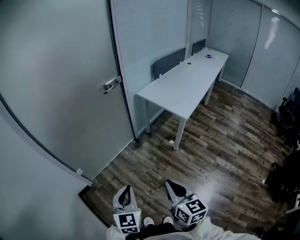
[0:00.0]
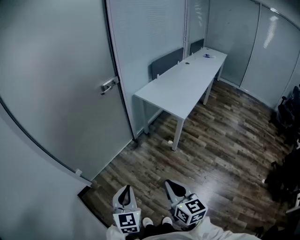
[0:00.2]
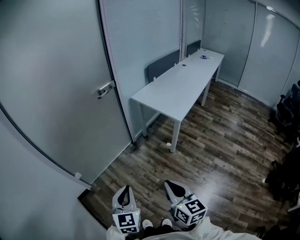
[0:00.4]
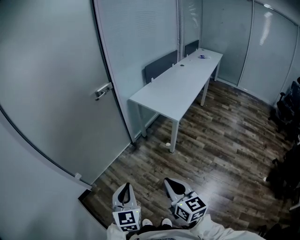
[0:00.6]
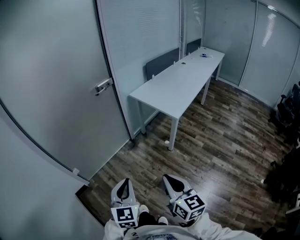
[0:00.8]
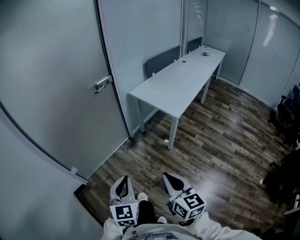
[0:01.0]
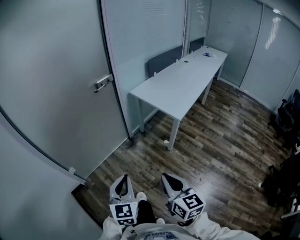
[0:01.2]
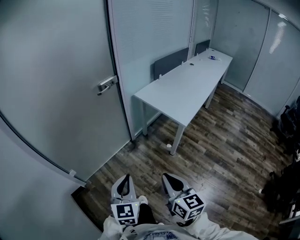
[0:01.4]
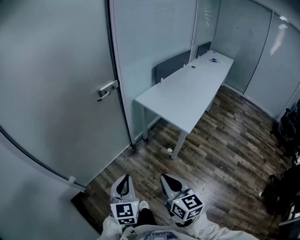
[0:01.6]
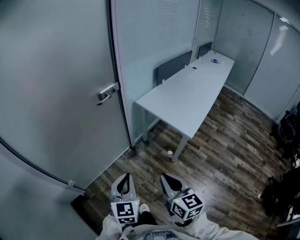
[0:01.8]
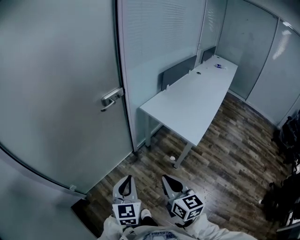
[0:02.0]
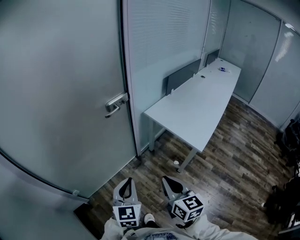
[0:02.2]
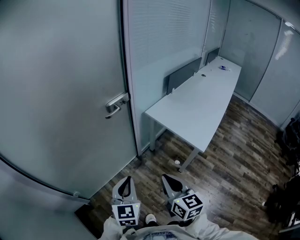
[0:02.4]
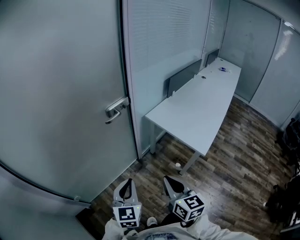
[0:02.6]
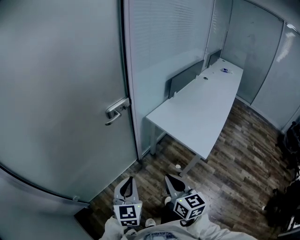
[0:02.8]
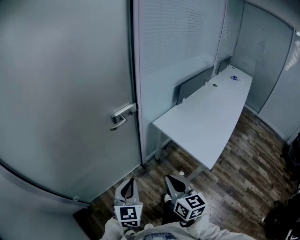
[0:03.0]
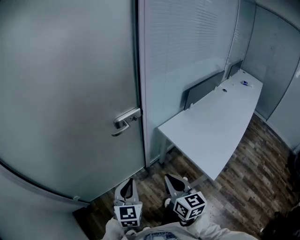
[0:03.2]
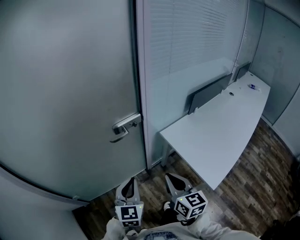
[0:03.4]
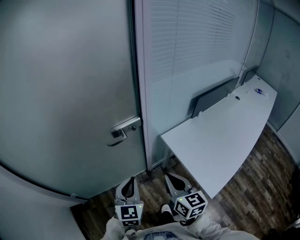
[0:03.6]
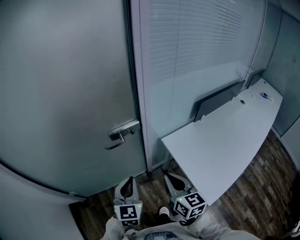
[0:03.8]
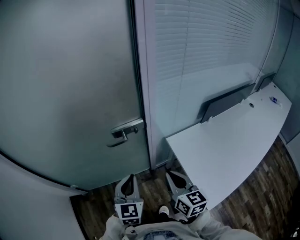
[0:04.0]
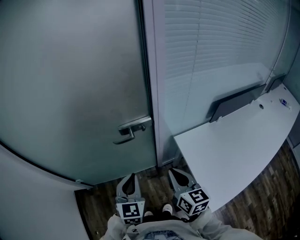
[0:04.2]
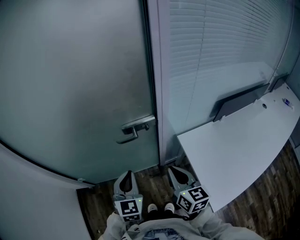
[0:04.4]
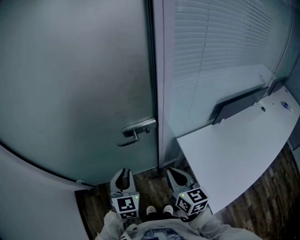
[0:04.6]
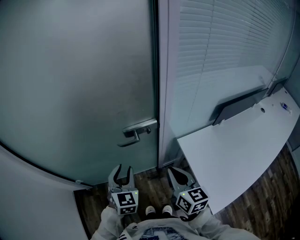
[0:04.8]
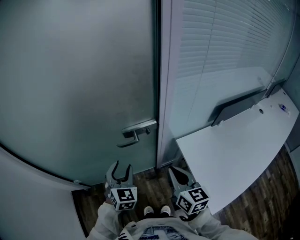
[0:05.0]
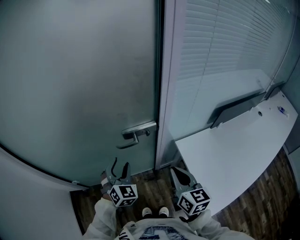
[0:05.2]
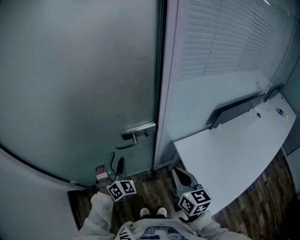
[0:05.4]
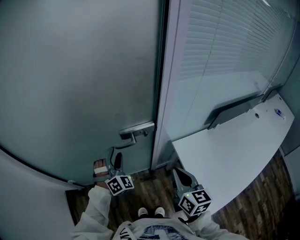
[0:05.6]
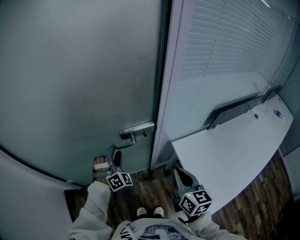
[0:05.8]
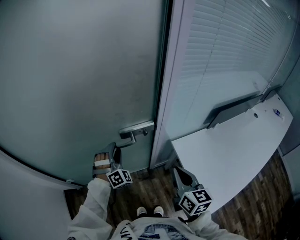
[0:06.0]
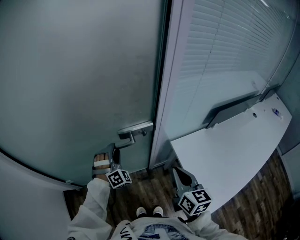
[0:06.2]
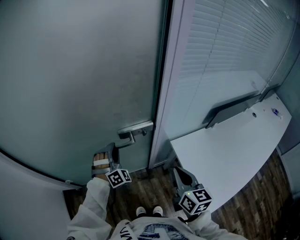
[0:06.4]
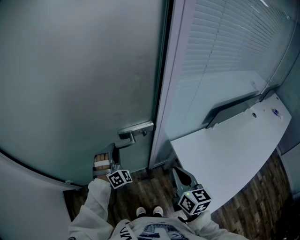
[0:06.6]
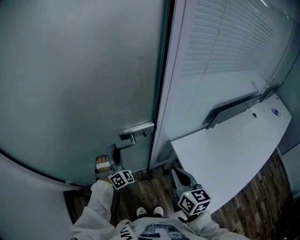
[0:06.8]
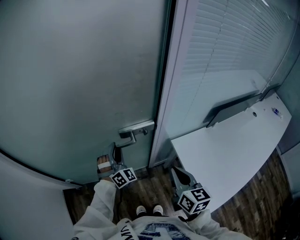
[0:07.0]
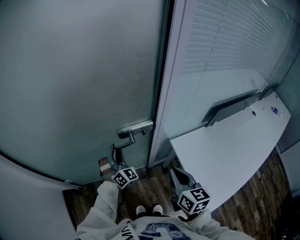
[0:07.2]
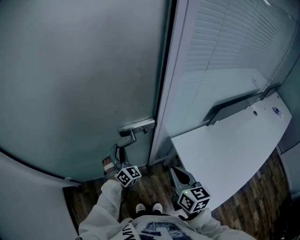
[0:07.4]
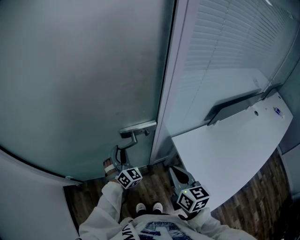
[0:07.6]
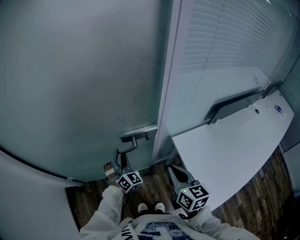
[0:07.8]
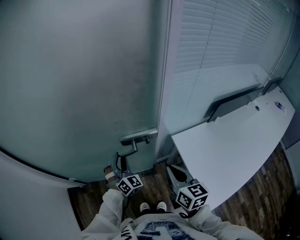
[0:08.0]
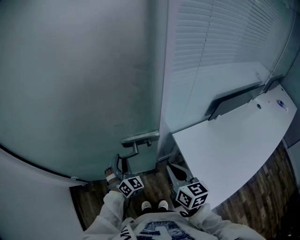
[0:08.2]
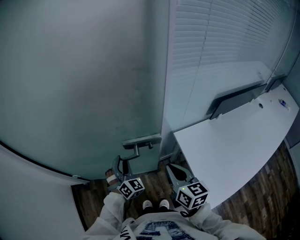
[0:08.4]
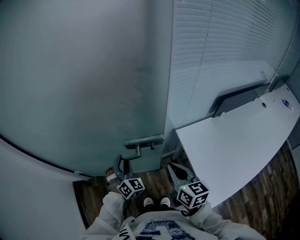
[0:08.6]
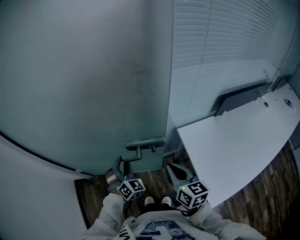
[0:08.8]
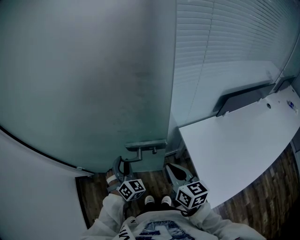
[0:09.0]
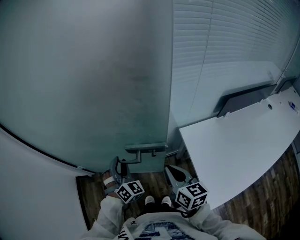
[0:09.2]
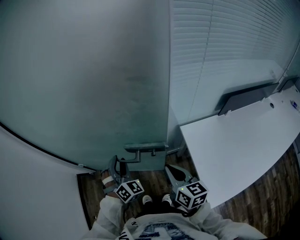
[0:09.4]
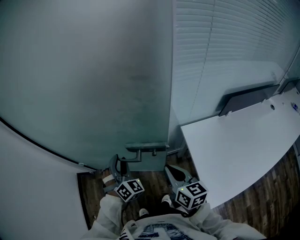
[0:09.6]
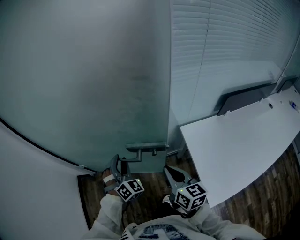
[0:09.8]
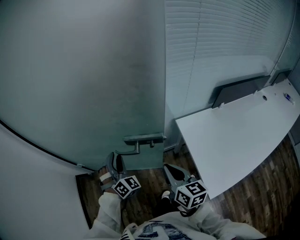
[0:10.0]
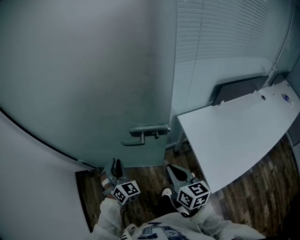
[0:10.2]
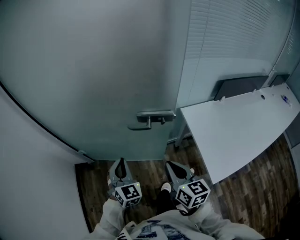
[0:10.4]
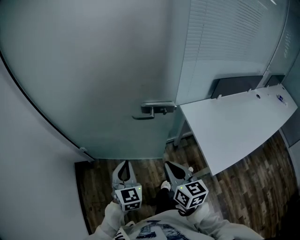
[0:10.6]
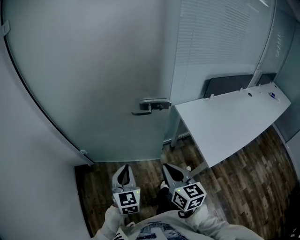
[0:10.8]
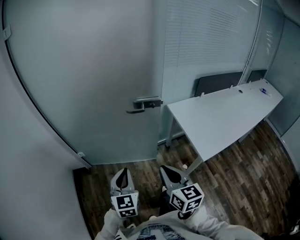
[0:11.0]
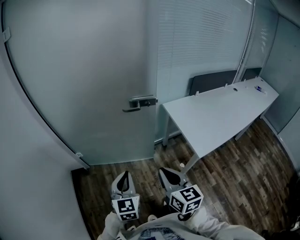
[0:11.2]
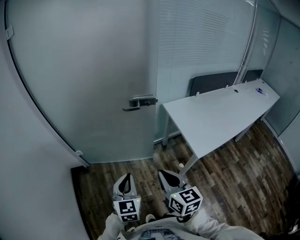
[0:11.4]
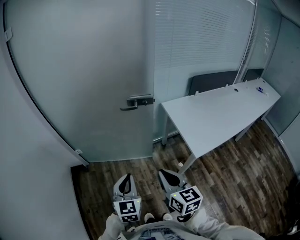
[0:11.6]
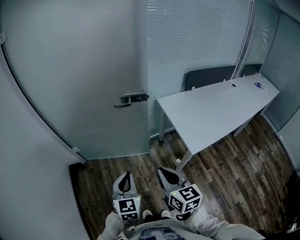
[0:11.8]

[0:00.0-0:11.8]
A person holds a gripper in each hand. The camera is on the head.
0:00.0 to 0:01.4: Both grippers move forward and to the right, approximately 10 cm.
0:01.4 to 0:03.0: Both grippers travel together forward, some 30 cm.
0:03.0 to 0:04.4: The right gripper ends up roughly 25 cm from where it was, and changes its angle by some 30 degrees, while the left gripper changes place by some 15 cm, and rotates some 30 degrees.
0:04.4 to 0:06.0: The left gripper heads forward, covering approximately 15 cm, rolls clockwise, seen from behind, by about 60 degrees, and opens.
0:06.0 to 0:07.4: The left gripper turns by roughly 30 degrees.
0:07.4 to 0:08.8: The left gripper goes approximately 15 cm backward.
0:08.8 to 0:10.4: Both grippers travel together backward and to the left, about 20 cm. The left gripper swivels some 20 degrees, and closes its fingers.
0:10.4 to 0:11.8: The two grippers go approximately 25 cm backward. The left gripper rotates approximately 20 degrees.

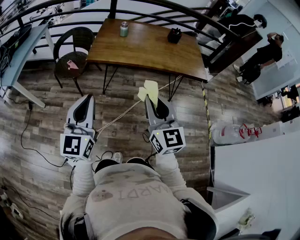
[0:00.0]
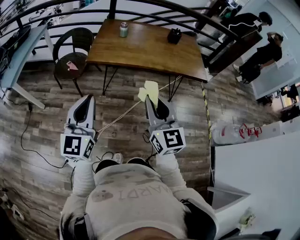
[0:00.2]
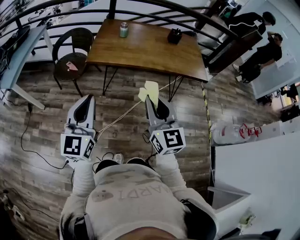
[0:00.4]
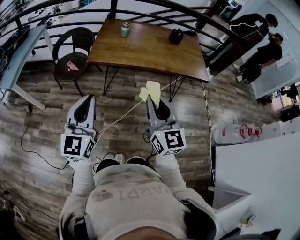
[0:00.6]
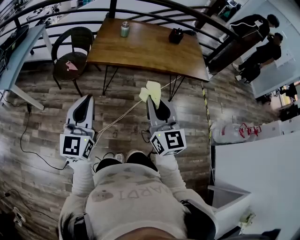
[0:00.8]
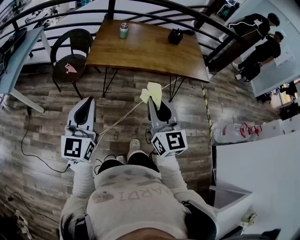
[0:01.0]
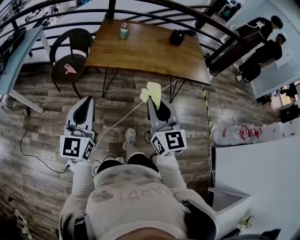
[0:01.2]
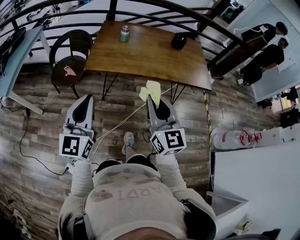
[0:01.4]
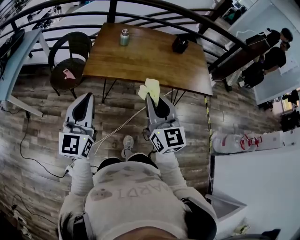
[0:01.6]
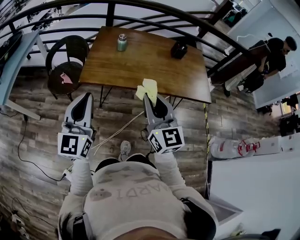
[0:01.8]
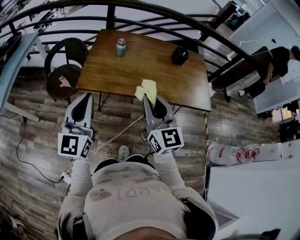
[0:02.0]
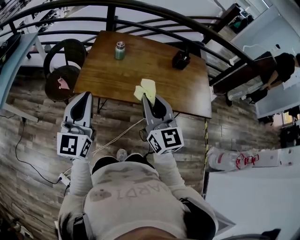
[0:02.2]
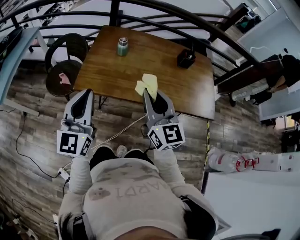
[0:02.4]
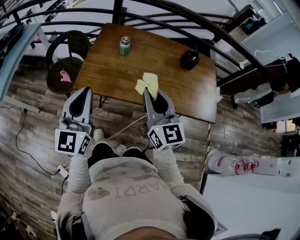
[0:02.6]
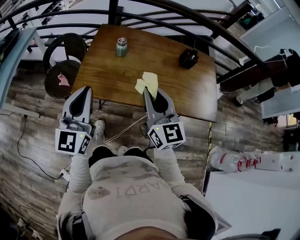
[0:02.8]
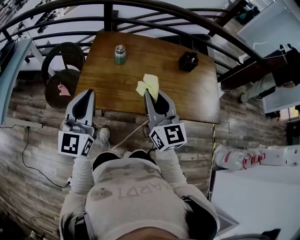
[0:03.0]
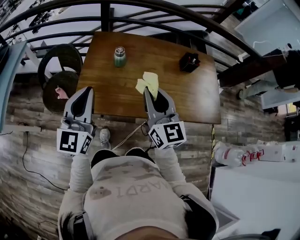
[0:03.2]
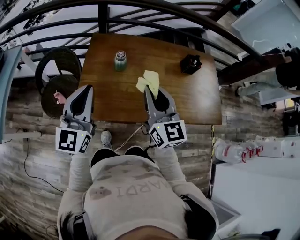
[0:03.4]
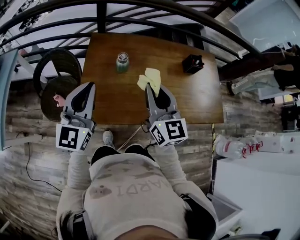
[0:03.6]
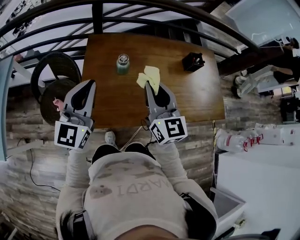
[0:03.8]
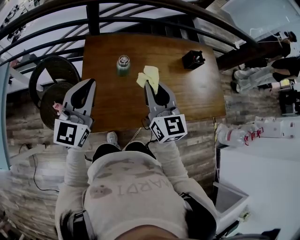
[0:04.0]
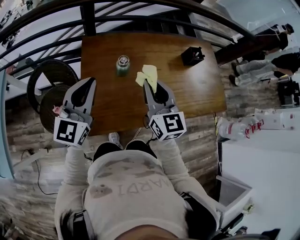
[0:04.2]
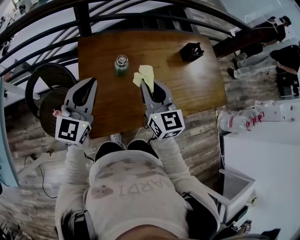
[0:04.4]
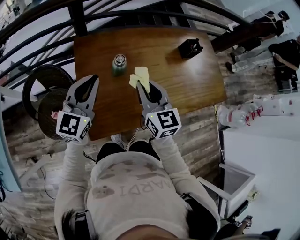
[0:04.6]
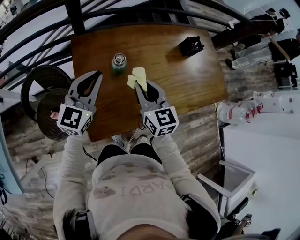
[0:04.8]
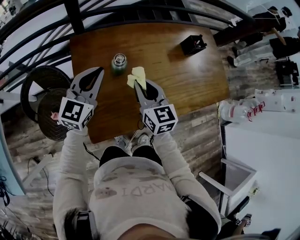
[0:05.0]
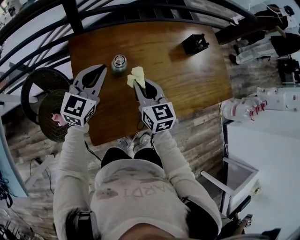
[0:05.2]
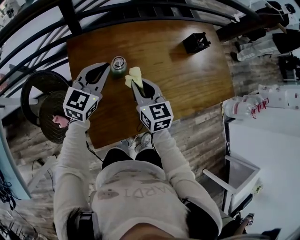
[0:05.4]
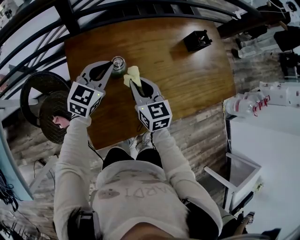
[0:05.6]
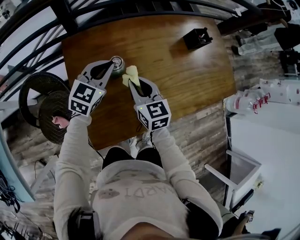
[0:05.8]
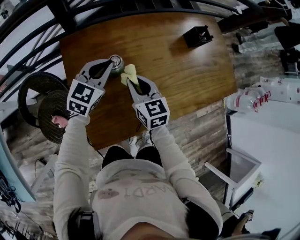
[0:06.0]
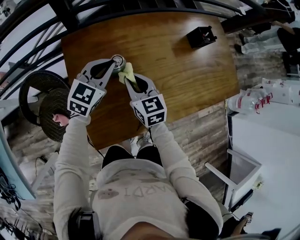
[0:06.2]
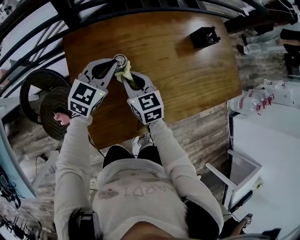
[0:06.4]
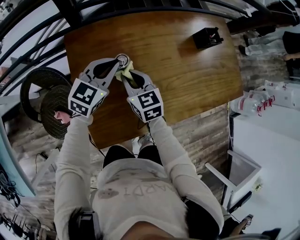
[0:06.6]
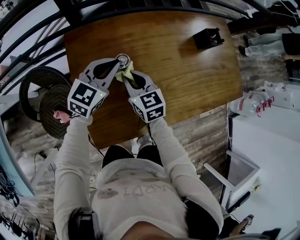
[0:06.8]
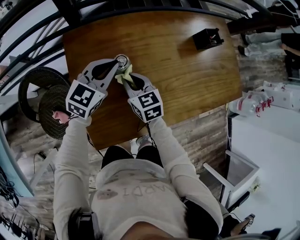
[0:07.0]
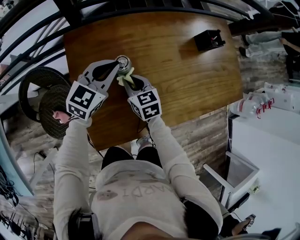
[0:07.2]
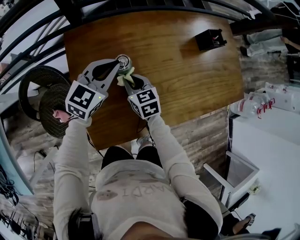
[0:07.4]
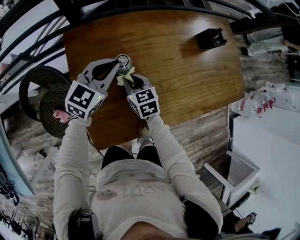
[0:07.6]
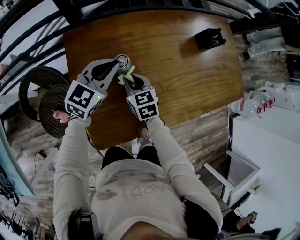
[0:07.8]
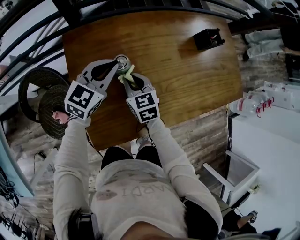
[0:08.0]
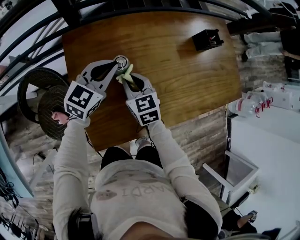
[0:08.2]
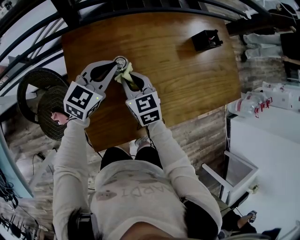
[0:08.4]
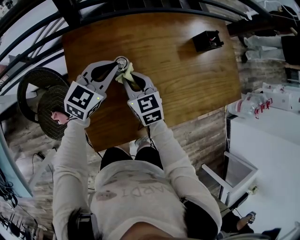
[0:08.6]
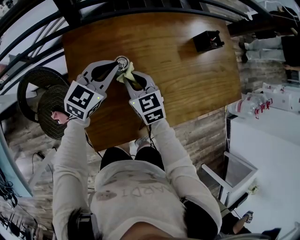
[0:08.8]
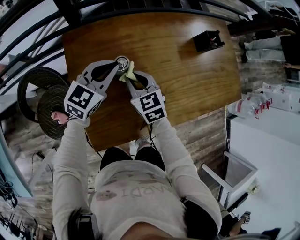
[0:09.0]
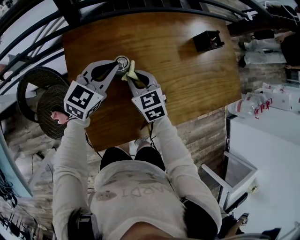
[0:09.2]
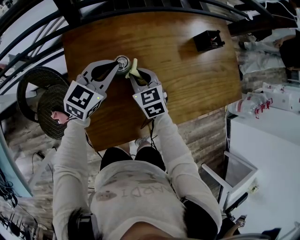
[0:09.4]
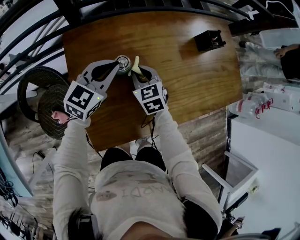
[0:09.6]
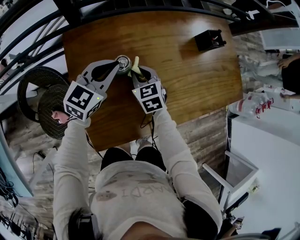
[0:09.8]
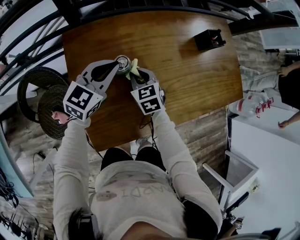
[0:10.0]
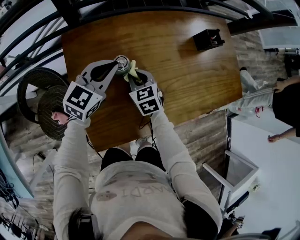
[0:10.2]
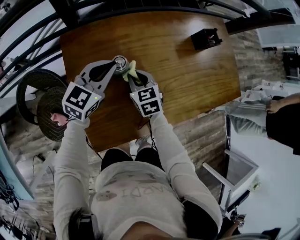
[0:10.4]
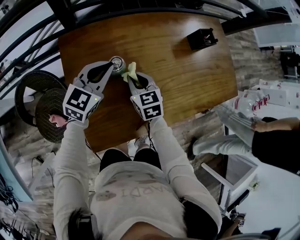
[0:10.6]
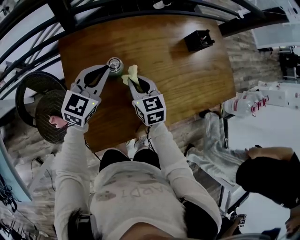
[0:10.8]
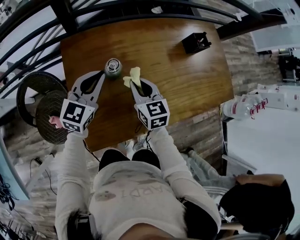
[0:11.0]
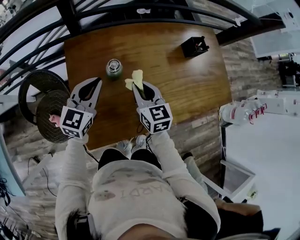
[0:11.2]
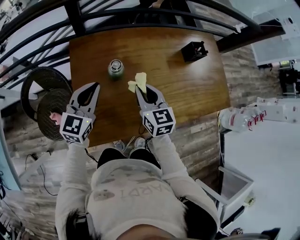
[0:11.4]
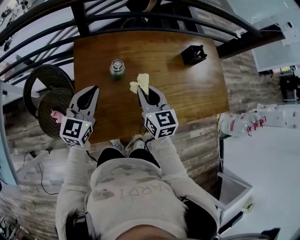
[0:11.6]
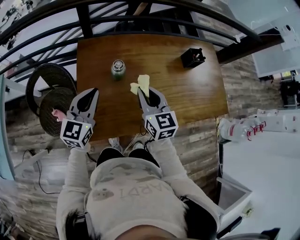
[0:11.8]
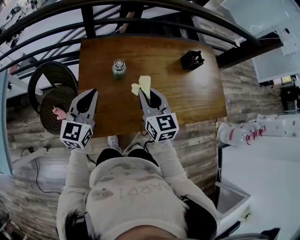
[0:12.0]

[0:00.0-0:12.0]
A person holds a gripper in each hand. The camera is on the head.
0:00.0 to 0:01.6: Both grippers move forward, roughly 20 cm.
0:01.6 to 0:03.0: Both grippers travel together forward, about 30 cm.
0:03.0 to 0:04.4: The two grippers go roughly 25 cm forward and to the left. The left gripper rotates approximately 30 degrees.
0:04.4 to 0:06.0: The left gripper is displaced forward and downward by approximately 25 cm, and turns by roughly 30 degrees, while the right gripper goes some 20 cm downward and forward.
0:06.0 to 0:07.6: The right gripper goes about 10 cm downward.
0:07.6 to 0:09.0: The right gripper travels upward by roughly 5 cm.
0:09.0 to 0:10.4: The right gripper moves about 5 cm.
0:10.4 to 0:12.0: The right gripper moves upward and backward, some 25 cm, and turns by approximately 30 degrees. The left gripper shifts roughly 20 cm backward and upward, and turns by about 30 degrees.
